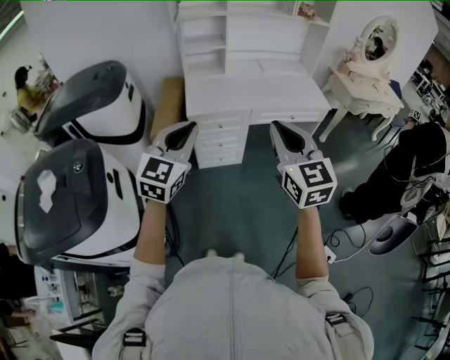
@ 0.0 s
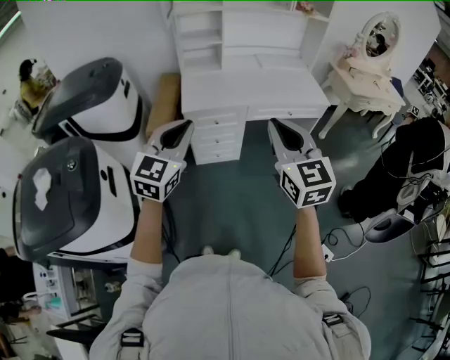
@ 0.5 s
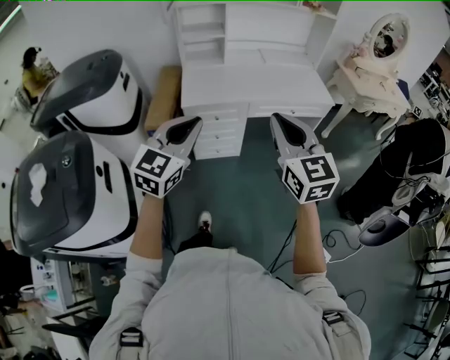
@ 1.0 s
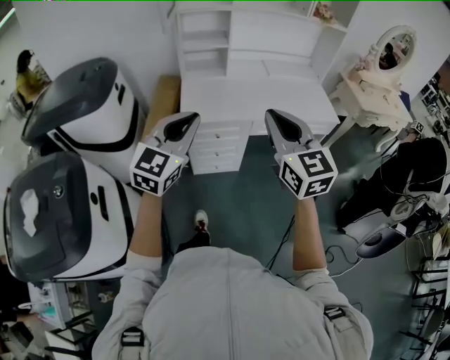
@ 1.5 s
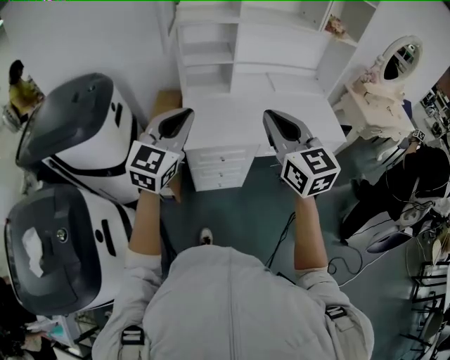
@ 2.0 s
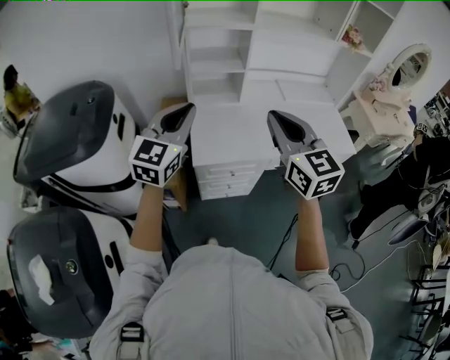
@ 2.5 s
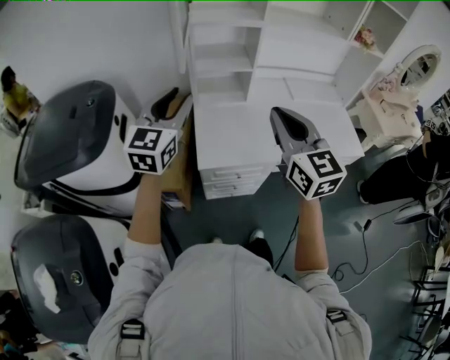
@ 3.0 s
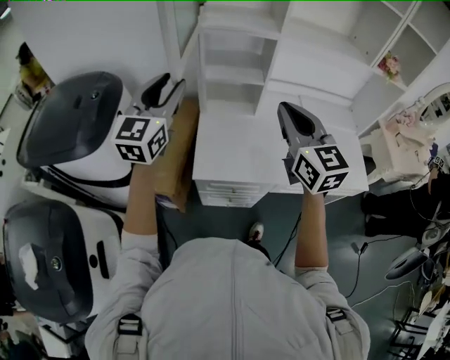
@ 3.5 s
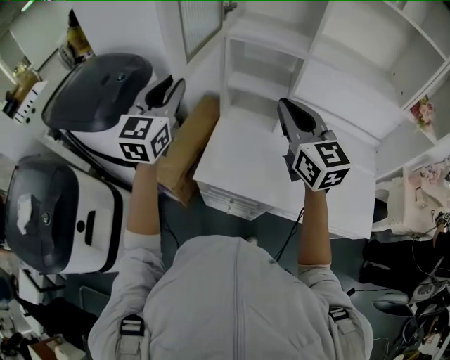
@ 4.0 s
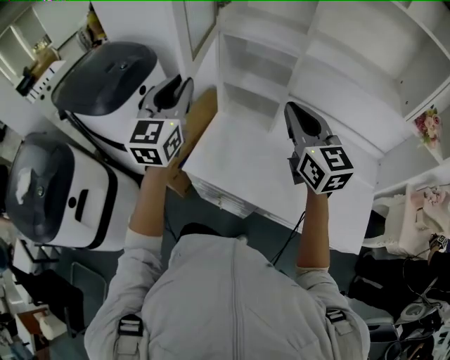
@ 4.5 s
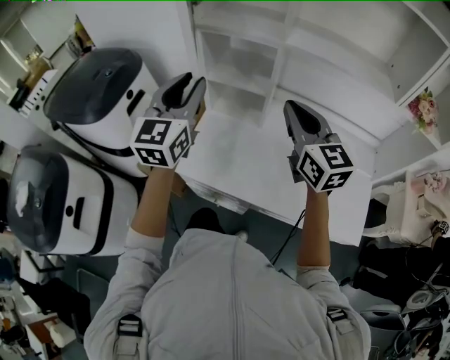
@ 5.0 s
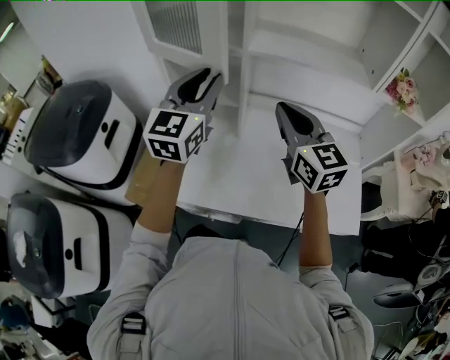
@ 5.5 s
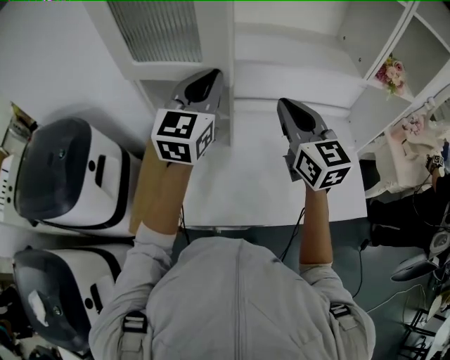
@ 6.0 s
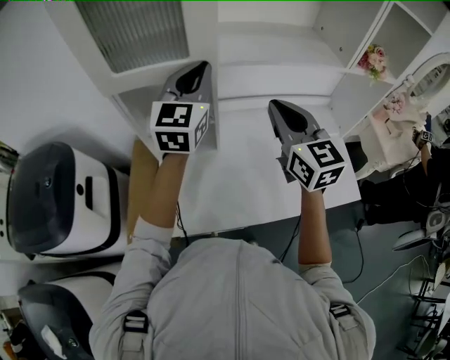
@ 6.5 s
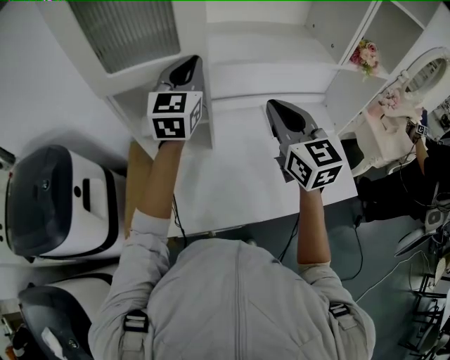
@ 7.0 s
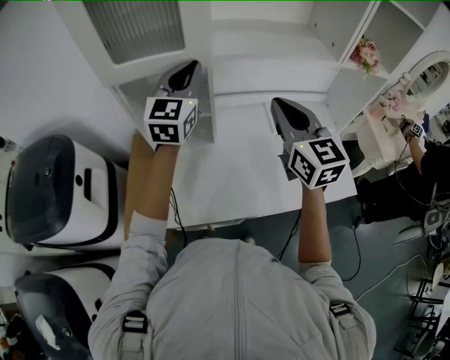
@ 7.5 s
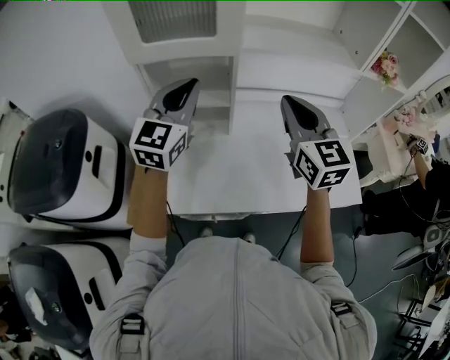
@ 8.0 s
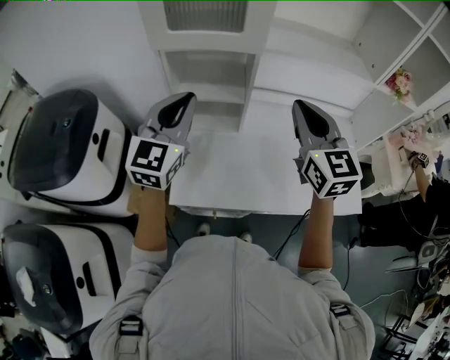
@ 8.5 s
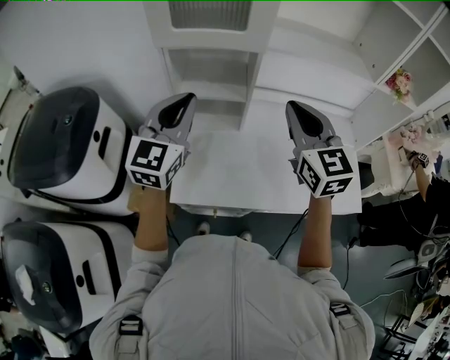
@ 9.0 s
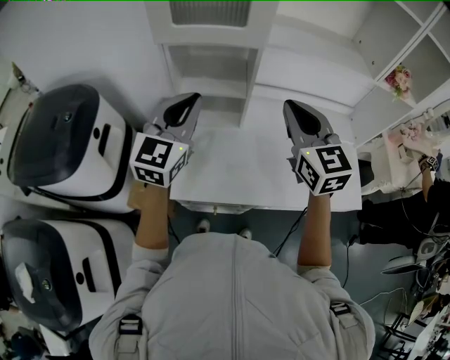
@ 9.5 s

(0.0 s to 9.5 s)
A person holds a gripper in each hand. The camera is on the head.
0.0 s - 2.0 s: The grippers both shift forward by roughly 30 cm.
2.0 s - 4.0 s: The right gripper moves roughly 30 cm, and changes its angle by some 20 degrees. The left gripper shifts by roughly 25 cm, and rotates roughly 40 degrees.
4.0 s - 5.5 s: The left gripper is displaced to the right by roughly 25 cm. The right gripper heads to the right, covering approximately 15 cm.
5.5 s - 7.5 s: The left gripper is displaced forward by about 10 cm, and closes its fingers.
7.5 s - 9.5 s: The right gripper travels to the left by about 5 cm. Meanwhile the left gripper travels backward and to the left by approximately 20 cm.

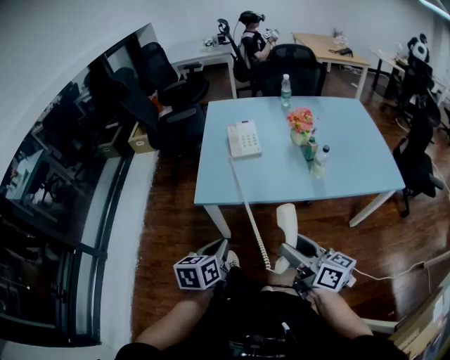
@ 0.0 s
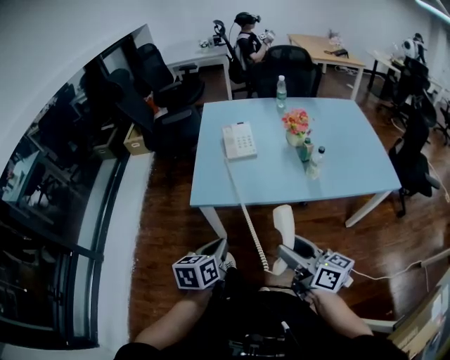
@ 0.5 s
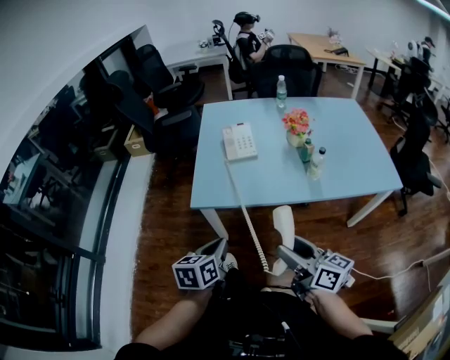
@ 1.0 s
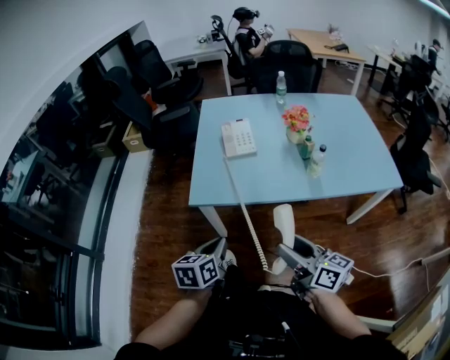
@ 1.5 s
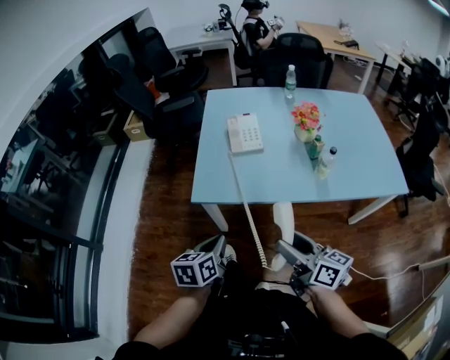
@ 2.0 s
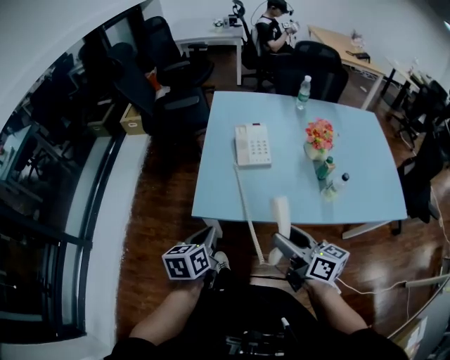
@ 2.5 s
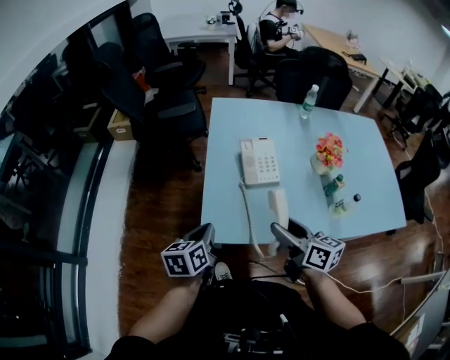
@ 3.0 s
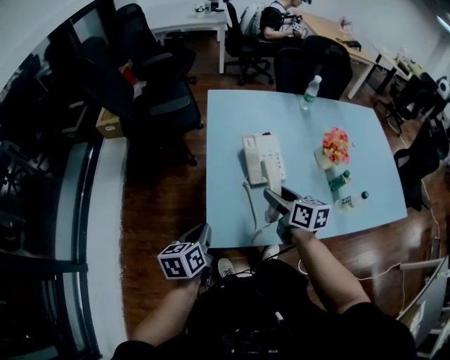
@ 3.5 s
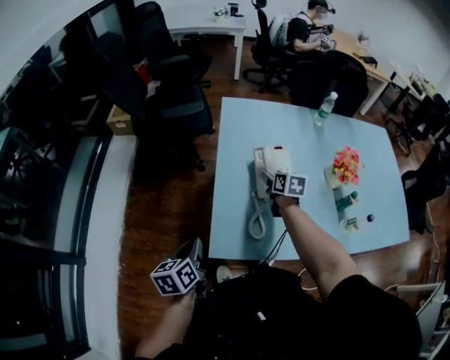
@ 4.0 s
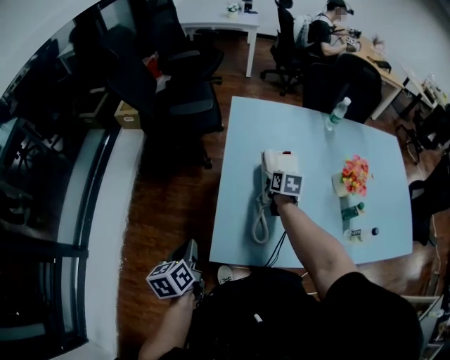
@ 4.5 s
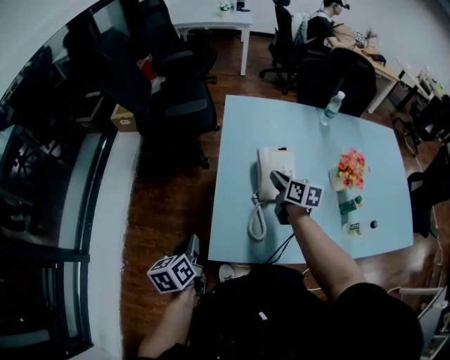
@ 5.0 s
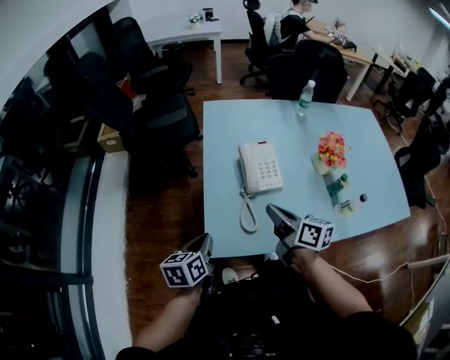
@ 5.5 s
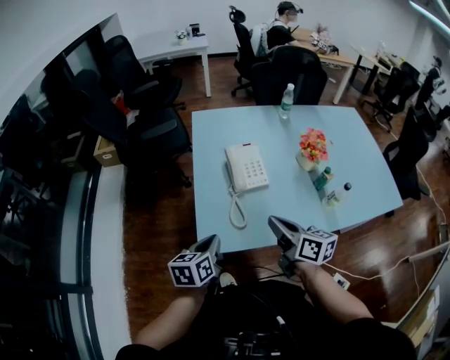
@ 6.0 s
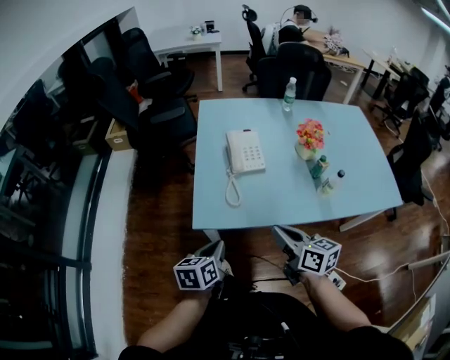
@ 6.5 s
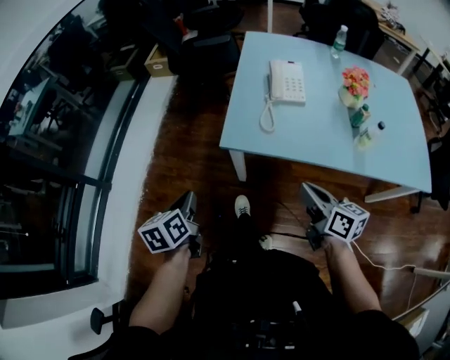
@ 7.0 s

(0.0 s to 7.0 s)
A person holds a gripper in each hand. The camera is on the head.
0.0 s - 2.0 s: The right gripper heads forward, covering approximately 5 cm.
2.0 s - 3.5 s: The right gripper heads forward, covering approximately 40 cm, and rotates approximately 20 degrees, while the left gripper moves forward and to the left, roughly 30 cm.
3.5 s - 5.0 s: The left gripper travels to the left by about 5 cm, while the right gripper shifts approximately 15 cm forward, and closes up.
5.0 s - 7.0 s: The right gripper goes roughly 50 cm backward, while the left gripper heads backward, covering some 30 cm.

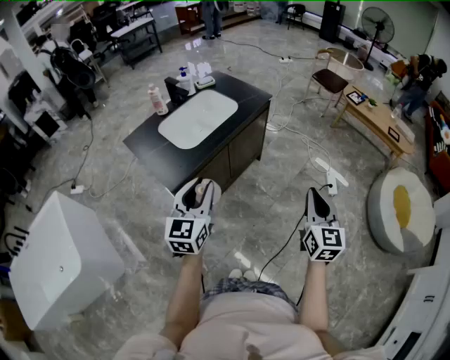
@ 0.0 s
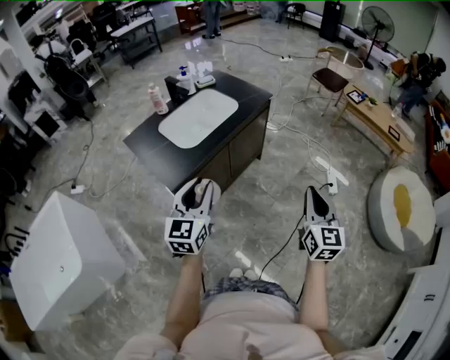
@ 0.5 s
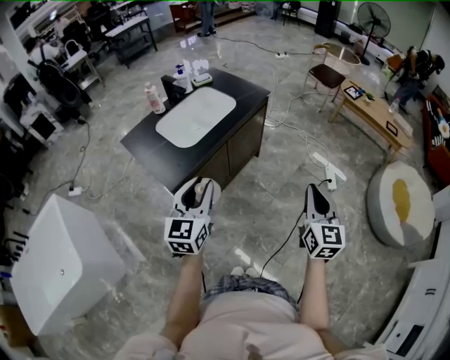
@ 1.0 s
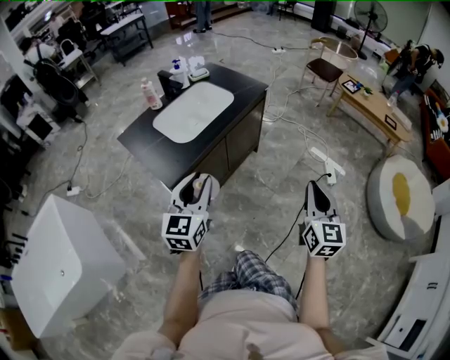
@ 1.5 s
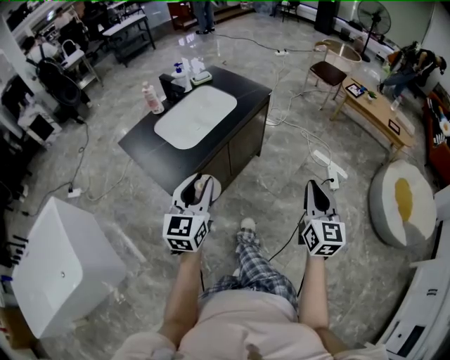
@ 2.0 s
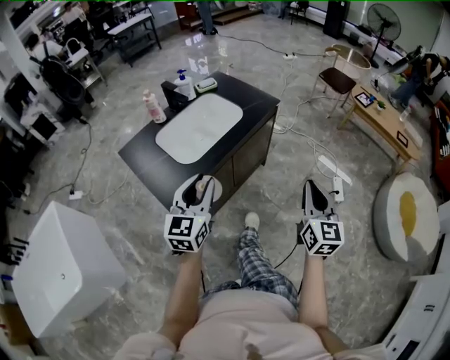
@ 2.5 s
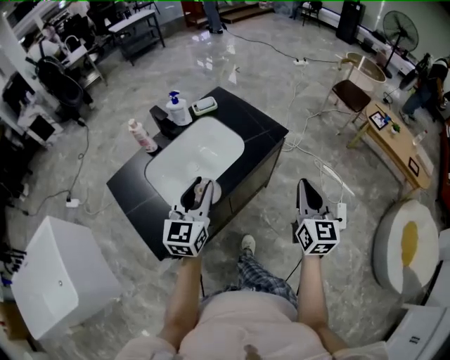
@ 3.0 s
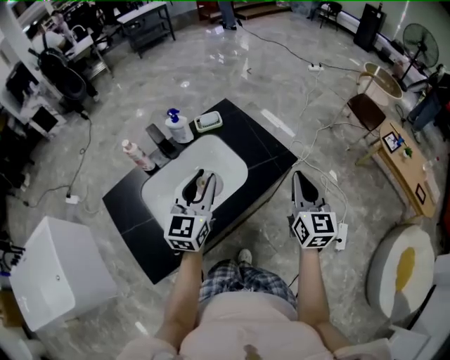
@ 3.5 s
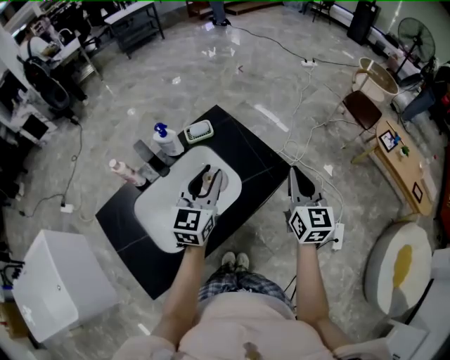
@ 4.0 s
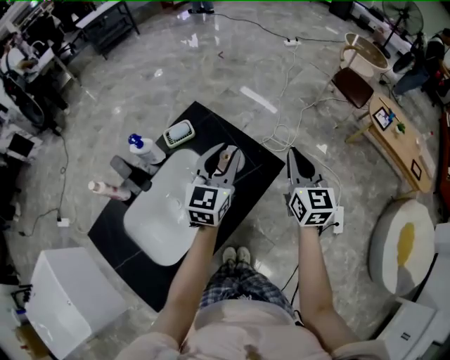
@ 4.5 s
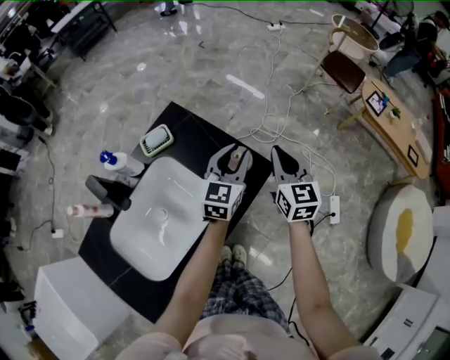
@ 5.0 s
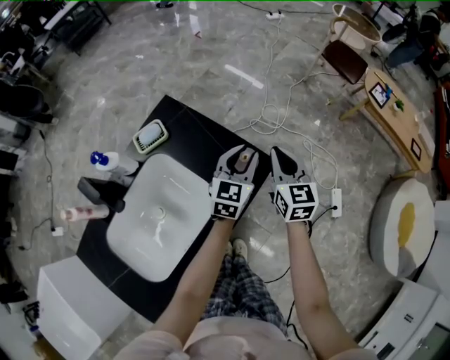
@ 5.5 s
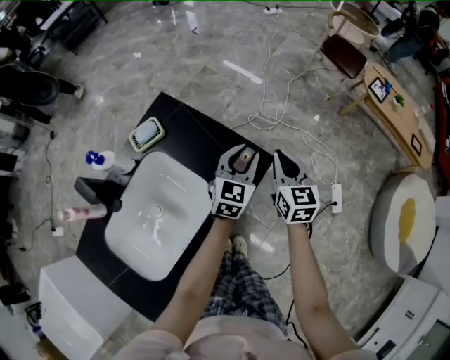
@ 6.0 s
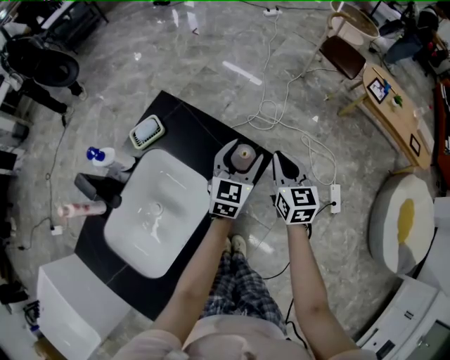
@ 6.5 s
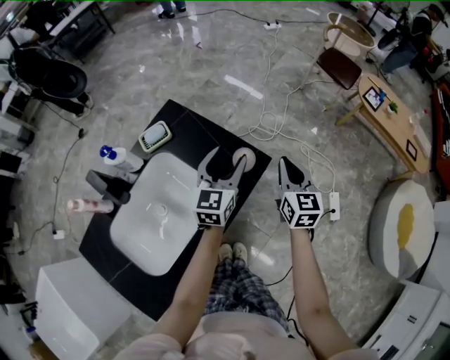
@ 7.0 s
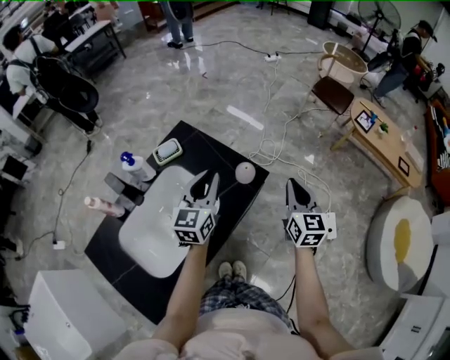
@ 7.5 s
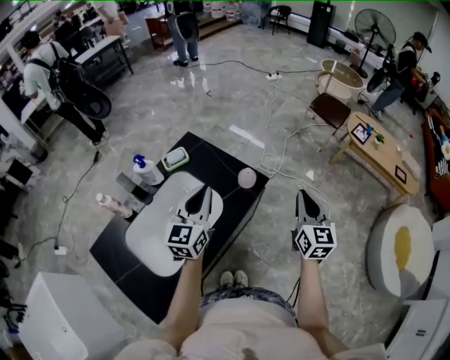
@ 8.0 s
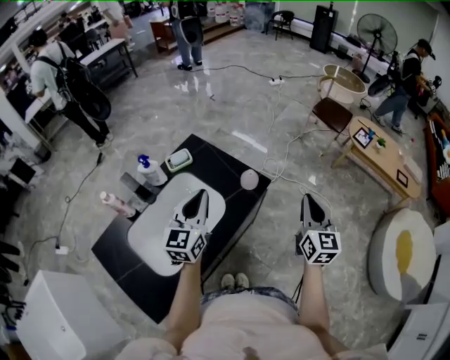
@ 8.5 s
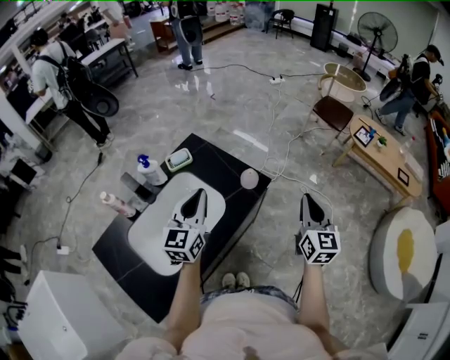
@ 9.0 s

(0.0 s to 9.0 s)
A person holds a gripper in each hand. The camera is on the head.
0.0 s - 2.0 s: The grippers stay close to where they were, moving slightly.
2.0 s - 4.5 s: Both grippers are carried forward, roughly 80 cm.
4.5 s - 7.0 s: The grippers both shift downward and to the right by approximately 10 cm. The left gripper opens its fingers.
7.0 s - 9.0 s: The left gripper moves backward, upward and to the left, about 25 cm, and closes. Meanwhile the right gripper heads backward and upward, covering about 25 cm.

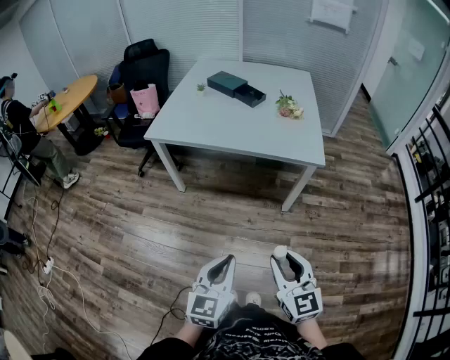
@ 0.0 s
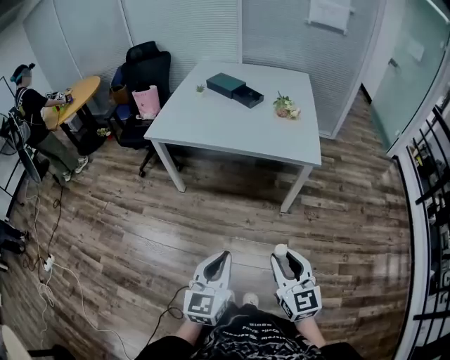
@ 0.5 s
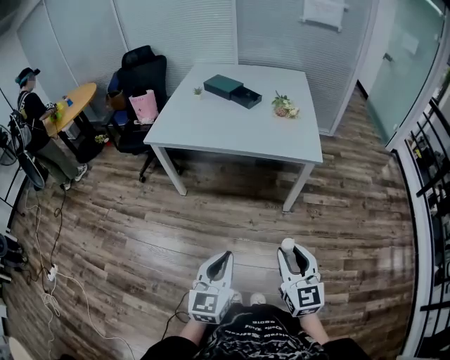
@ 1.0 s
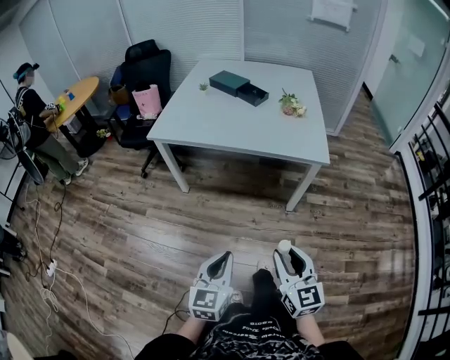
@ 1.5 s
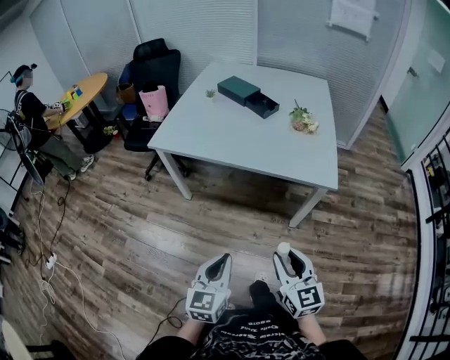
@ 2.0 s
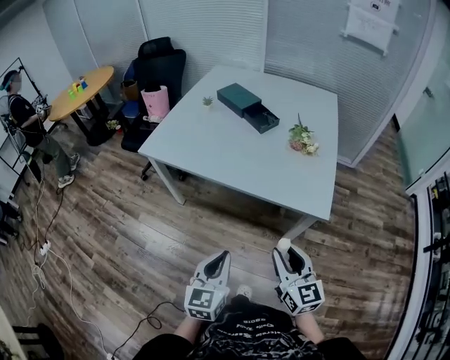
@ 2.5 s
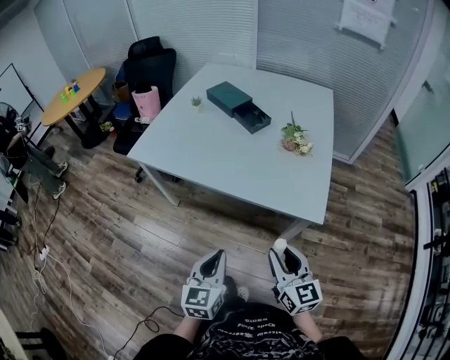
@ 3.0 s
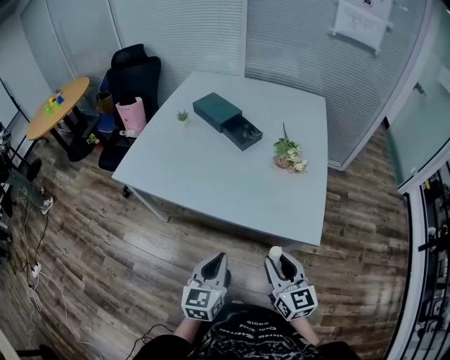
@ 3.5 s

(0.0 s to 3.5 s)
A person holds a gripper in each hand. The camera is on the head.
0.0 s - 2.0 s: Both grippers travel together forward, some 15 cm.
2.0 s - 3.5 s: Both grippers move forward and to the right, roughly 30 cm.
